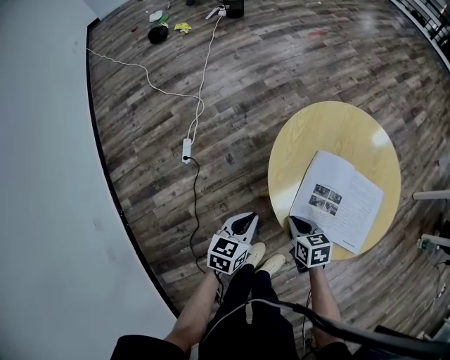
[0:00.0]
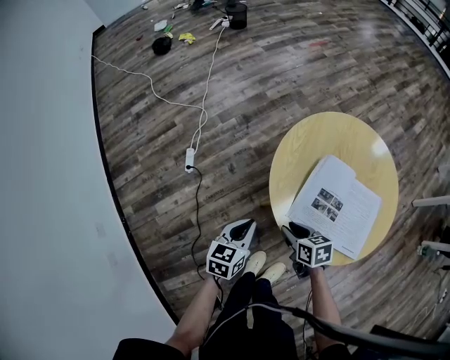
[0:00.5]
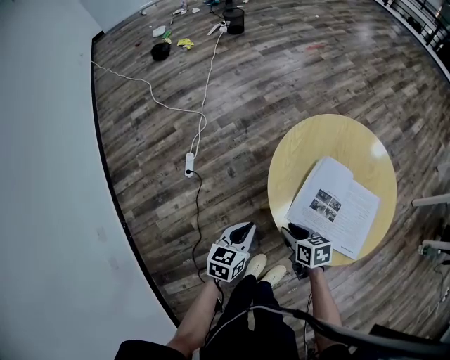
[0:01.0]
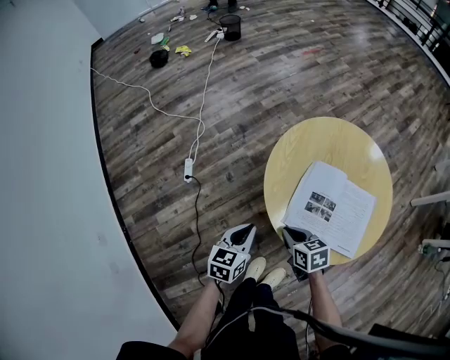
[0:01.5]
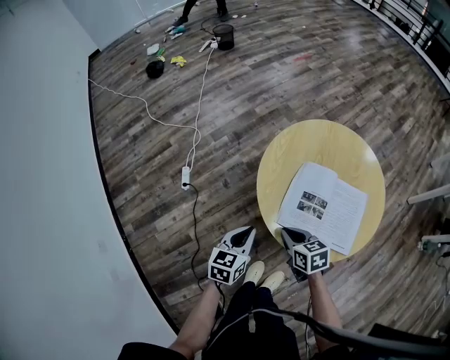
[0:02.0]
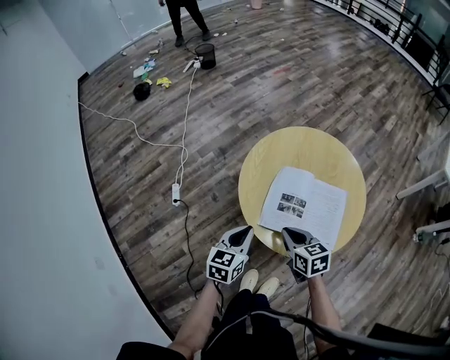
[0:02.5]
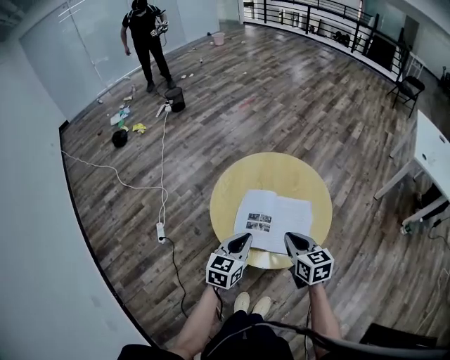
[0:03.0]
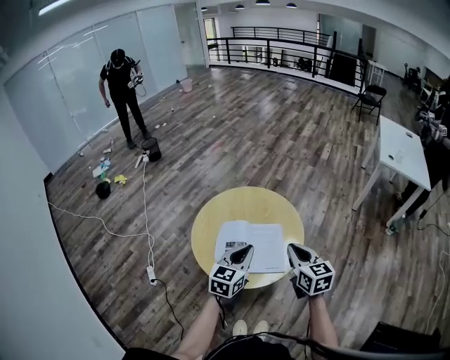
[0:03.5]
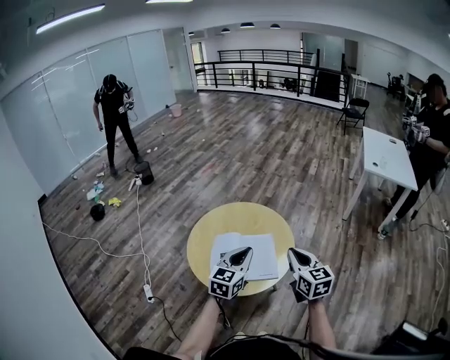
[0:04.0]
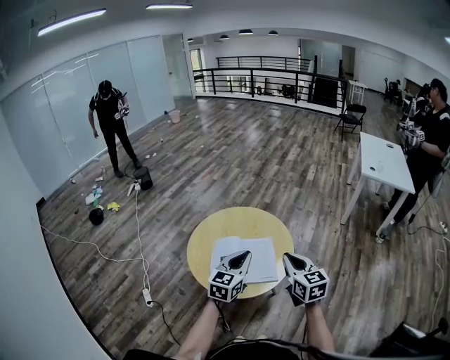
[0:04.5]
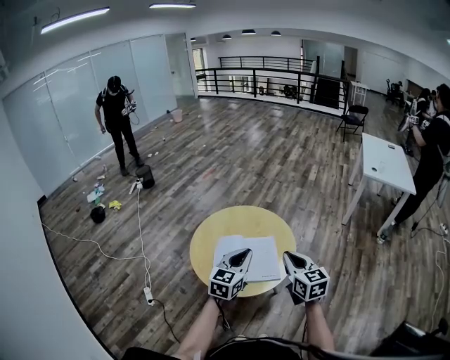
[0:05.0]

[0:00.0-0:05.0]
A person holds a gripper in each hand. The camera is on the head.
0:00.0 to 0:02.5: The grippers both shift upward and to the right by roughly 10 cm. The right gripper opens, then closes again.
0:02.5 to 0:05.0: Both grippers move upward, about 20 cm. The left gripper turns by about 30 degrees. The right gripper changes its angle by some 40 degrees.

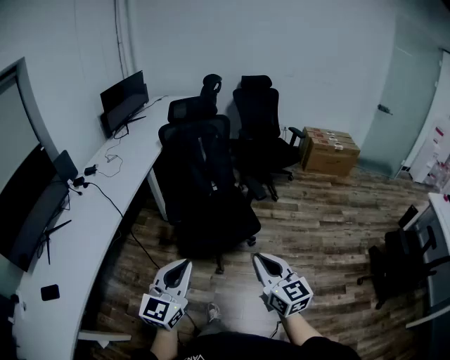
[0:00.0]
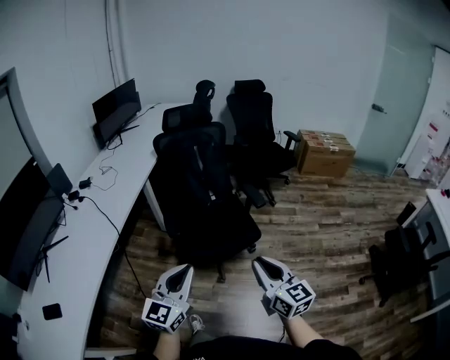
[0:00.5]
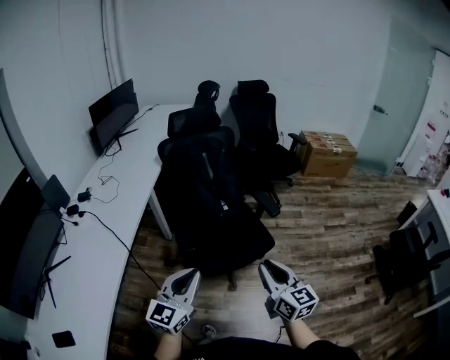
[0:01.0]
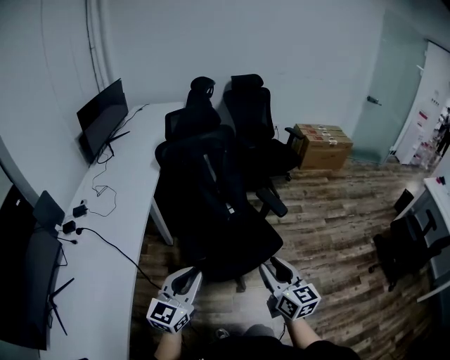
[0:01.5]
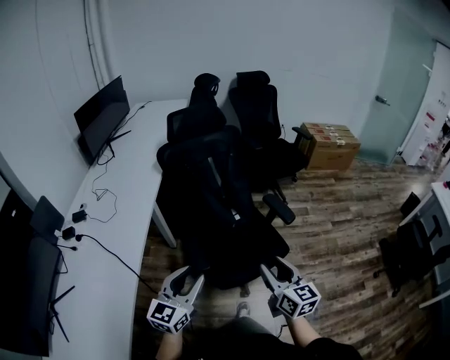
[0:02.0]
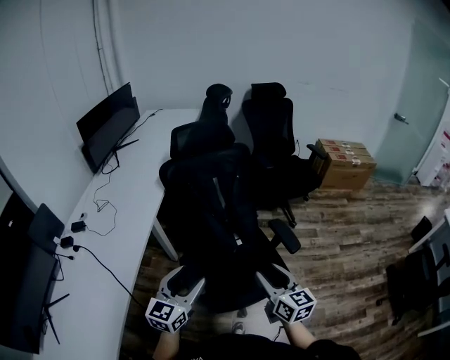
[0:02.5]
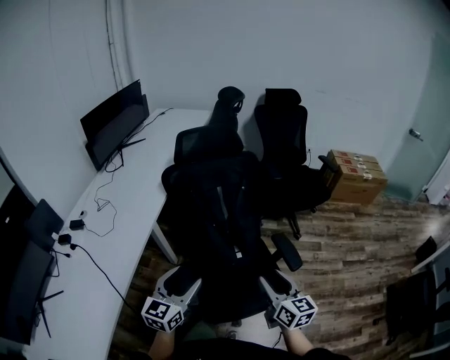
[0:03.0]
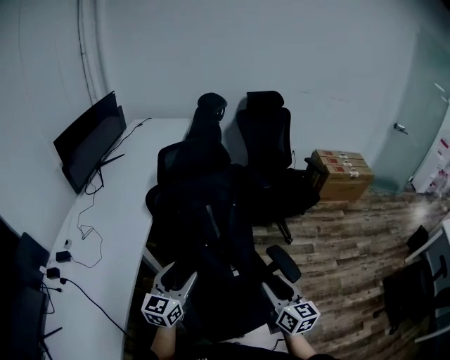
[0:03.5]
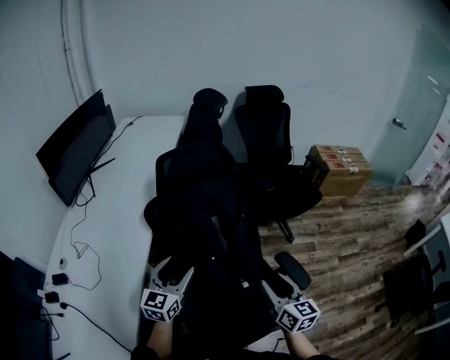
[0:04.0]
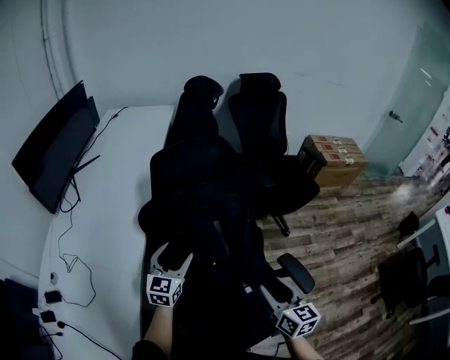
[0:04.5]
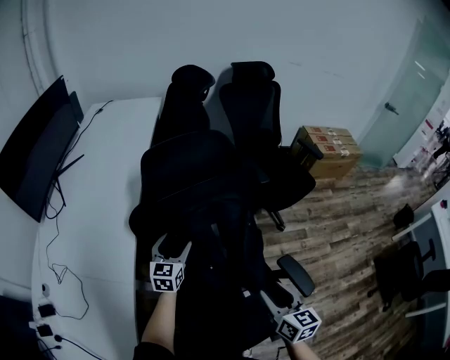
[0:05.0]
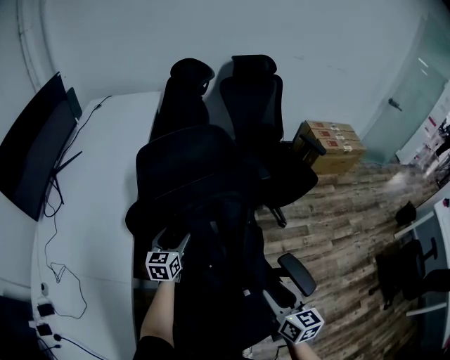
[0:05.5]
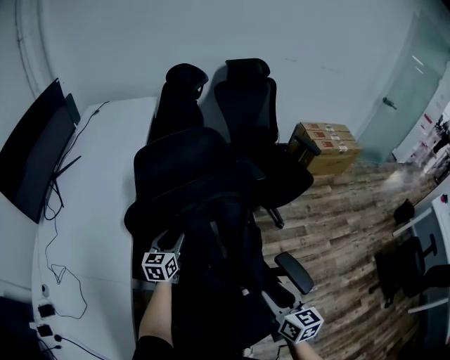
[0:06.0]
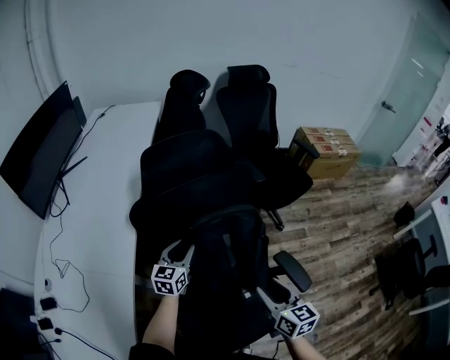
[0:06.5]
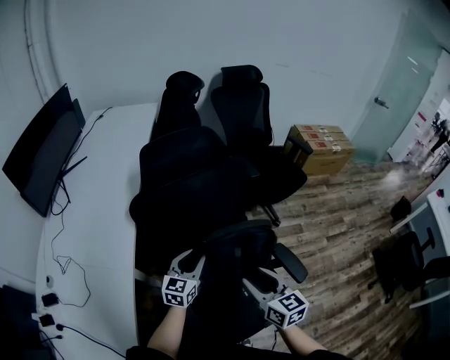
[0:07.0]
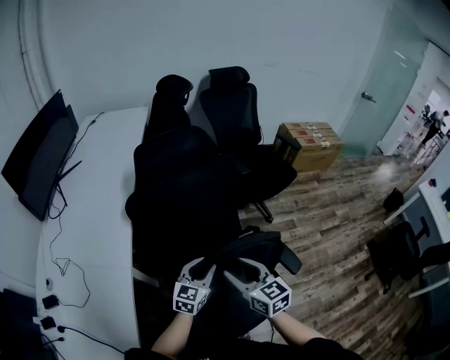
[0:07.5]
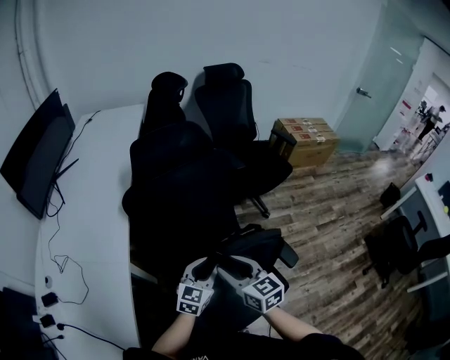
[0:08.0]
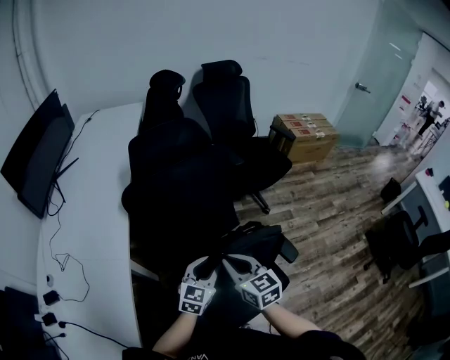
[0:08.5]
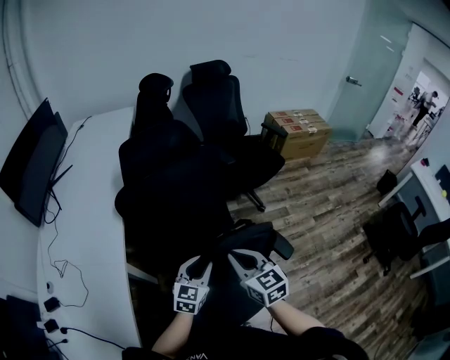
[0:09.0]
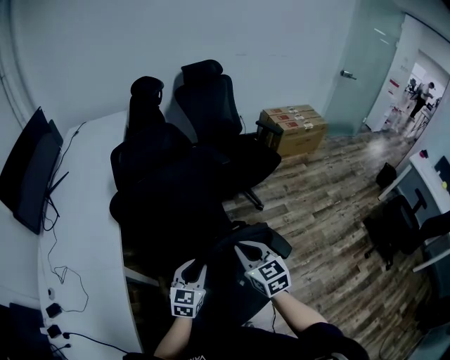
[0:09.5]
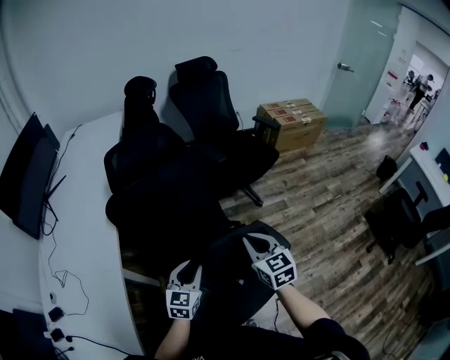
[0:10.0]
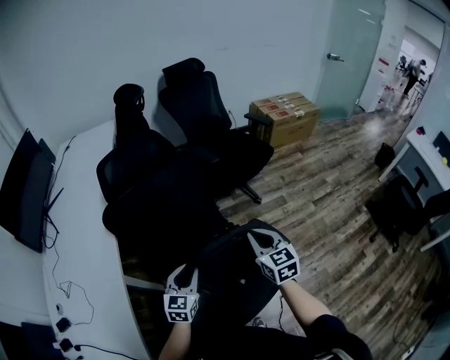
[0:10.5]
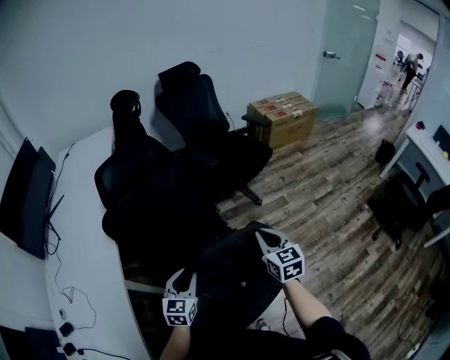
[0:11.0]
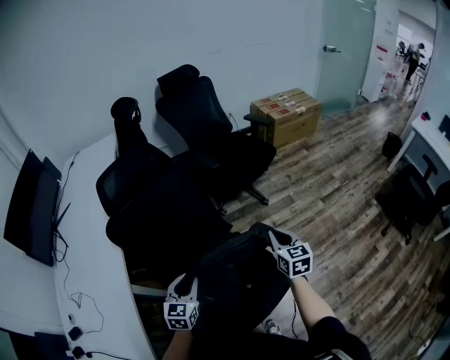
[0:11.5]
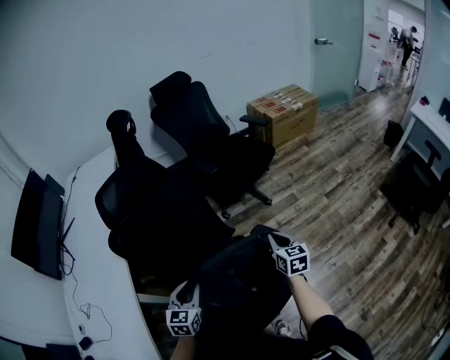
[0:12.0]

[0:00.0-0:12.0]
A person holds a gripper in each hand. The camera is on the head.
0:00.0 to 0:02.0: Both grippers travel together forward and to the left, about 35 cm. The right gripper opens; the left gripper opens up.
0:02.0 to 0:04.0: The two grippers go approximately 40 cm forward. The left gripper opens up.
0:04.0 to 0:06.0: The left gripper travels forward and downward by some 30 cm. The right gripper travels forward and downward by some 10 cm.
0:06.0 to 0:08.0: The right gripper heads to the left and backward, covering roughly 10 cm. Meanwhile the left gripper heads backward and to the right, covering about 30 cm, and turns by approximately 20 degrees.
0:08.0 to 0:10.0: The right gripper goes about 15 cm to the right, and closes up.
0:10.0 to 0:12.0: The right gripper is displaced to the right and downward by approximately 20 cm, and rotates about 20 degrees.

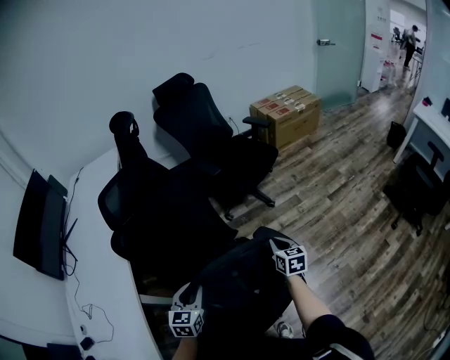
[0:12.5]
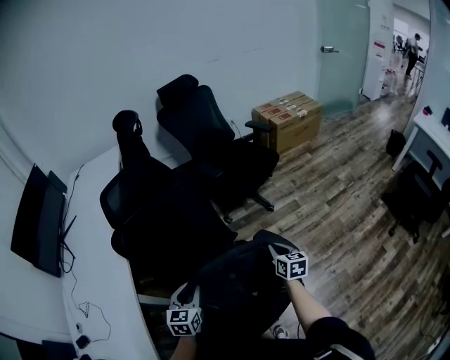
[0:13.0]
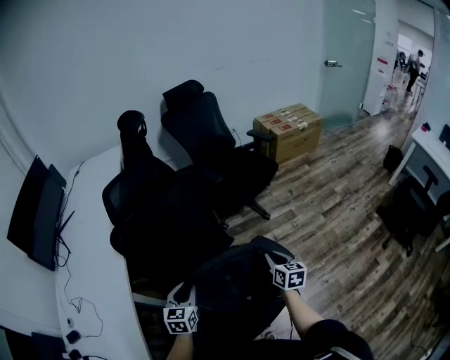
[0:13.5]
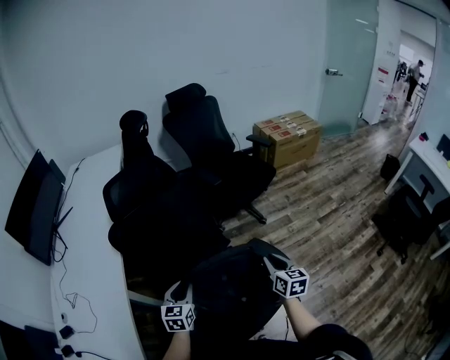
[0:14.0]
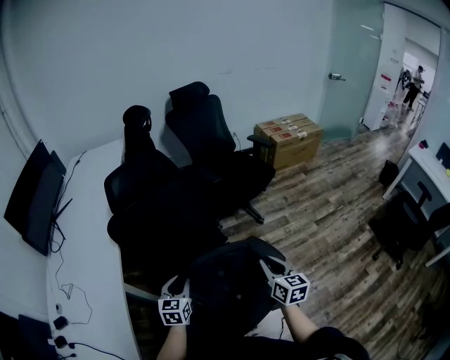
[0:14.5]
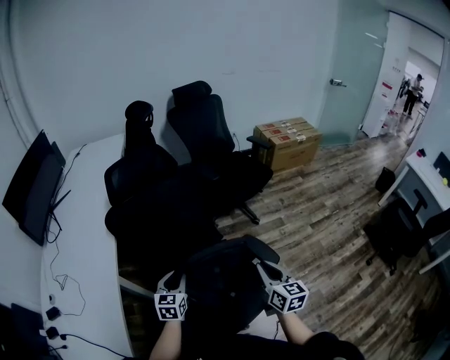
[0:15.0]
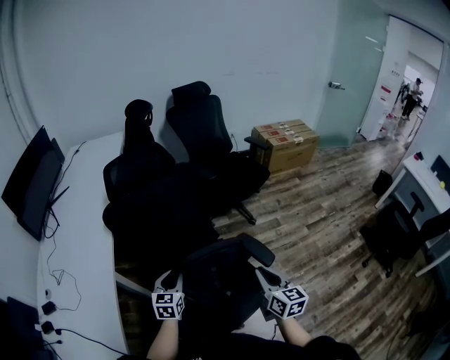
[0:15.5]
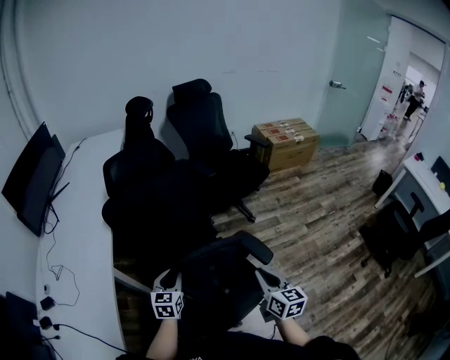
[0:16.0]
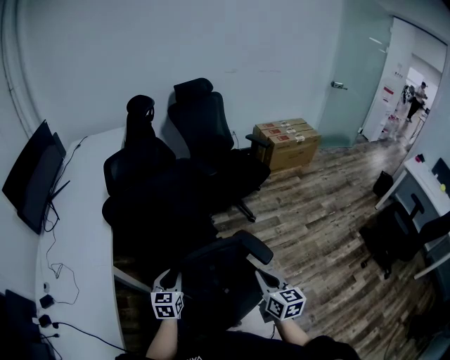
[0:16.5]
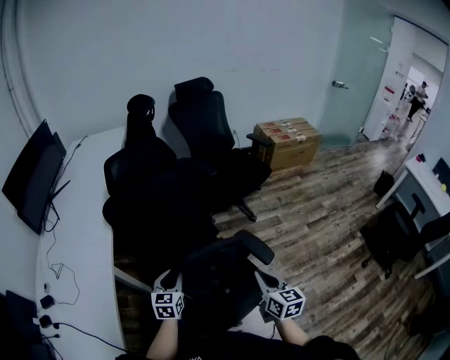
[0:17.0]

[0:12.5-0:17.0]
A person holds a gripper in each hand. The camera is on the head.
0:12.5 to 0:14.5: The right gripper heads upward and backward, covering about 15 cm.
0:14.5 to 0:17.0: The right gripper travels backward by about 10 cm.

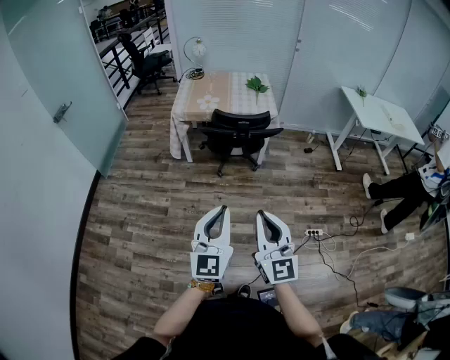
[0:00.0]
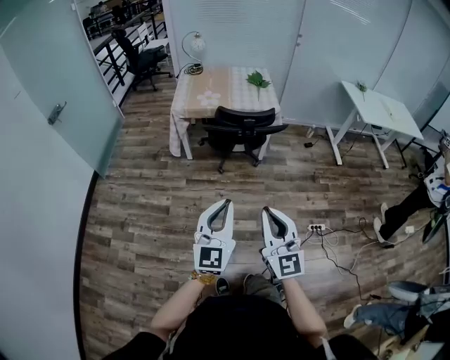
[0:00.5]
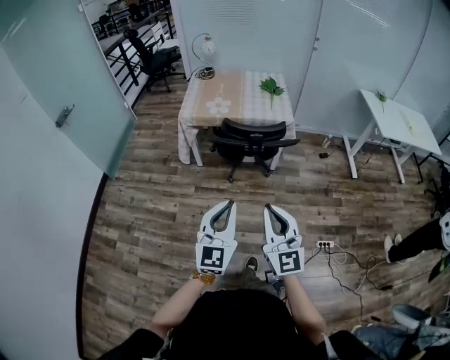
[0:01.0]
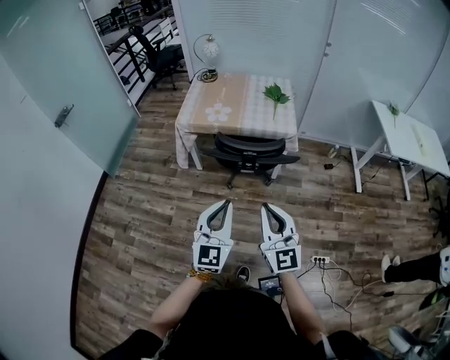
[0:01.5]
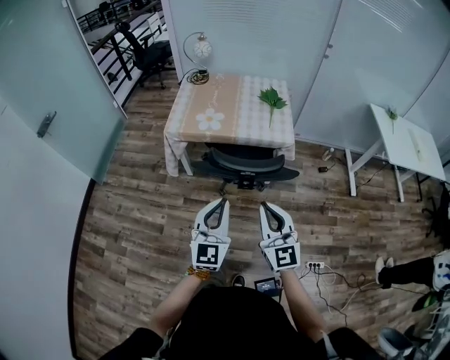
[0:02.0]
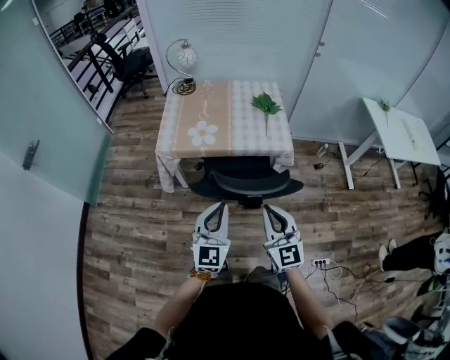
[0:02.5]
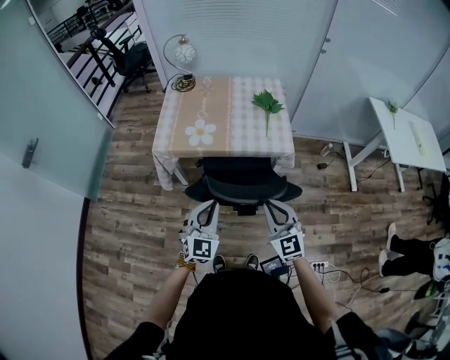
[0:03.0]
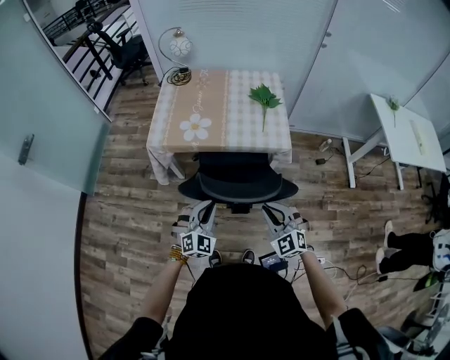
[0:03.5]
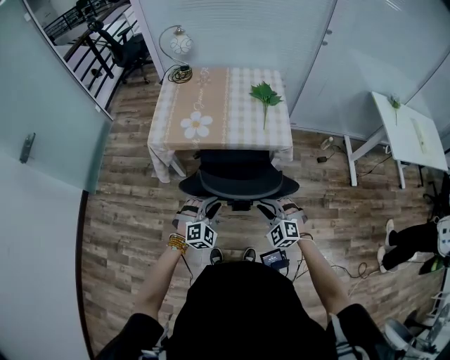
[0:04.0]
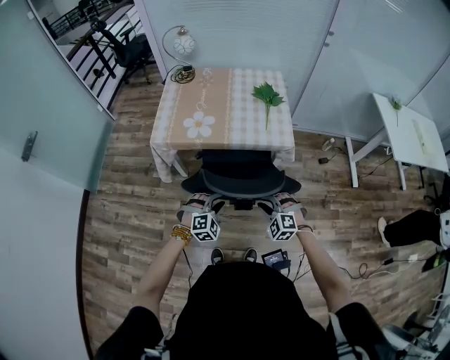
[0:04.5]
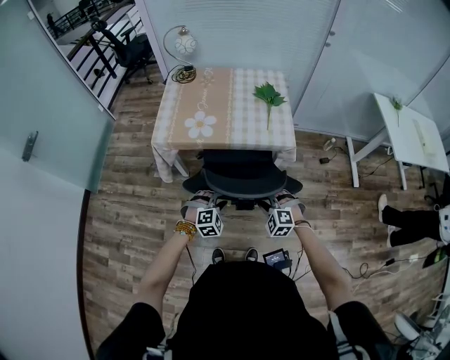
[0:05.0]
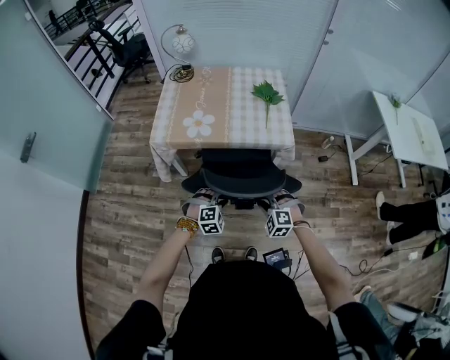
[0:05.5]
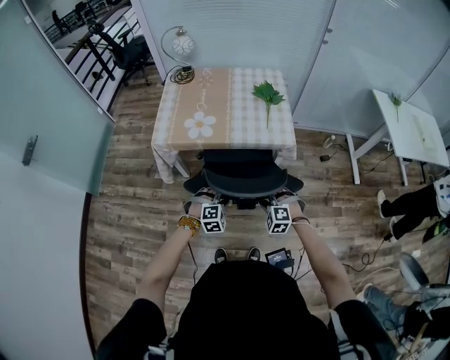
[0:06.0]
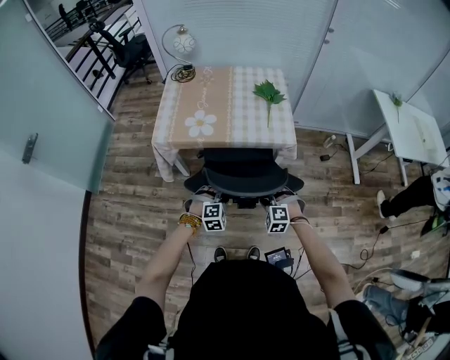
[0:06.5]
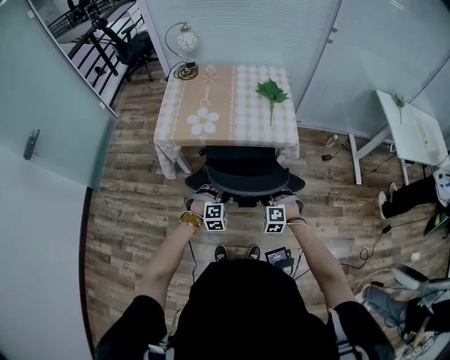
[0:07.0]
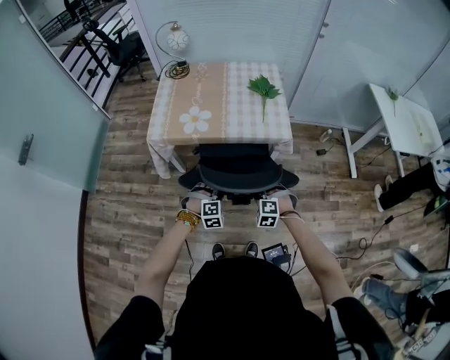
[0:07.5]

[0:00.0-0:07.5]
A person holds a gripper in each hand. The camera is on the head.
0:00.0 to 0:02.0: Both grippers move forward, some 40 cm.
0:02.0 to 0:04.0: Both grippers travel together downward and forward, about 25 cm. The left gripper tips its fingers downward by approximately 40 degrees. The right gripper points its fingers some 40 degrees further downward.
0:04.0 to 0:05.5: The left gripper heads downward, covering some 5 cm, while the right gripper moves approximately 5 cm.
0:05.5 to 0:07.5: The grippers stay close to where they were, moving slightly.
